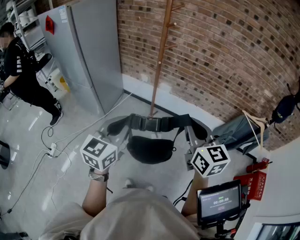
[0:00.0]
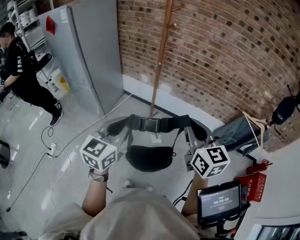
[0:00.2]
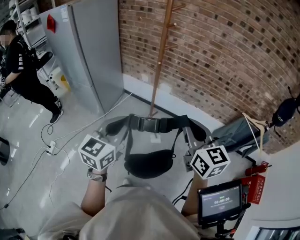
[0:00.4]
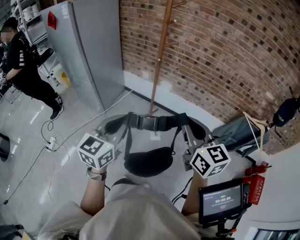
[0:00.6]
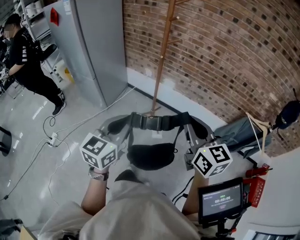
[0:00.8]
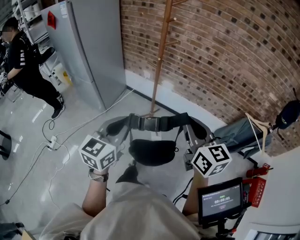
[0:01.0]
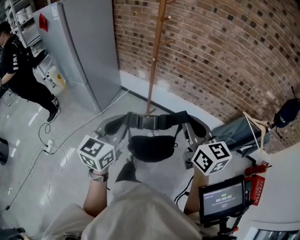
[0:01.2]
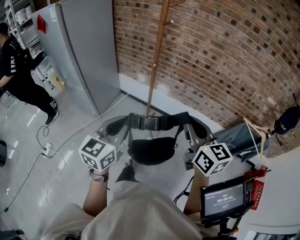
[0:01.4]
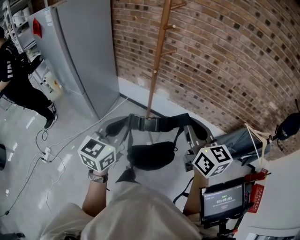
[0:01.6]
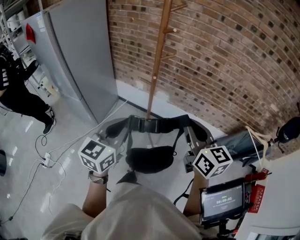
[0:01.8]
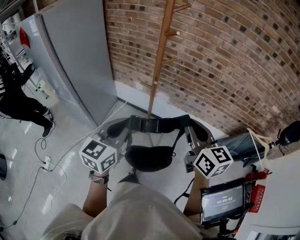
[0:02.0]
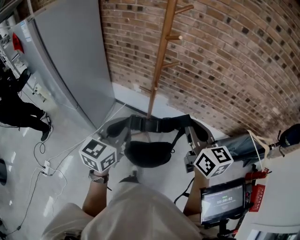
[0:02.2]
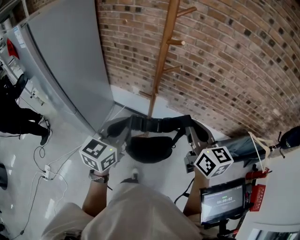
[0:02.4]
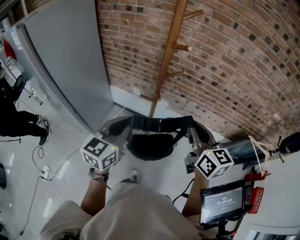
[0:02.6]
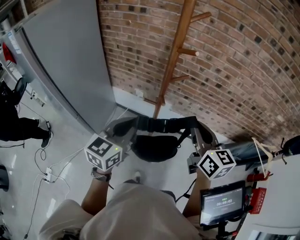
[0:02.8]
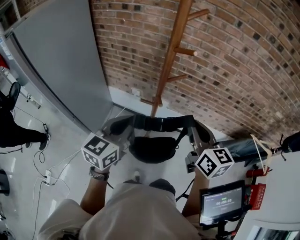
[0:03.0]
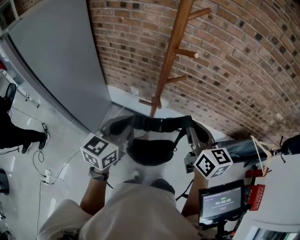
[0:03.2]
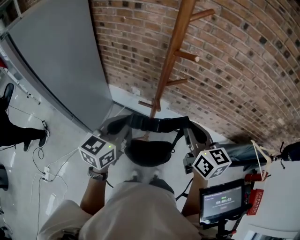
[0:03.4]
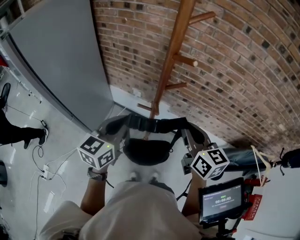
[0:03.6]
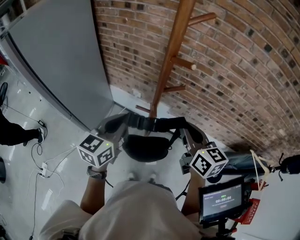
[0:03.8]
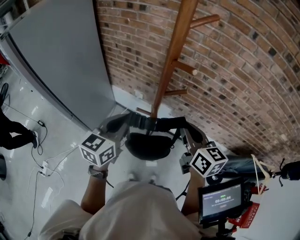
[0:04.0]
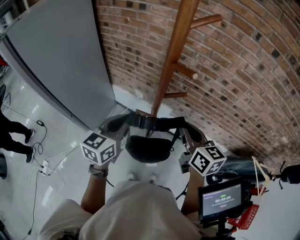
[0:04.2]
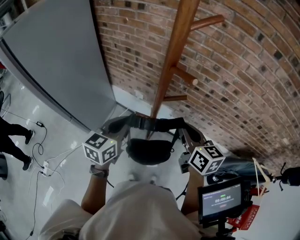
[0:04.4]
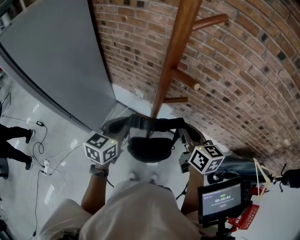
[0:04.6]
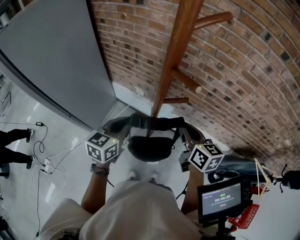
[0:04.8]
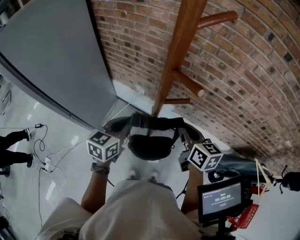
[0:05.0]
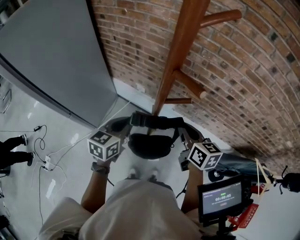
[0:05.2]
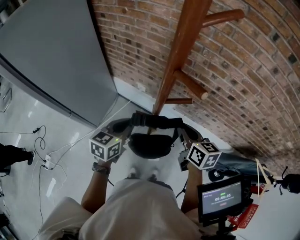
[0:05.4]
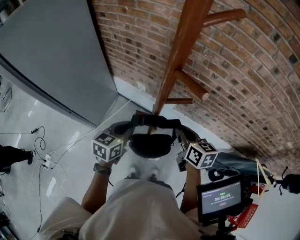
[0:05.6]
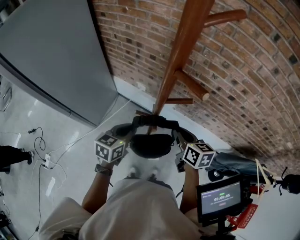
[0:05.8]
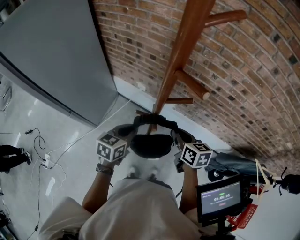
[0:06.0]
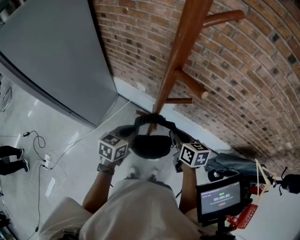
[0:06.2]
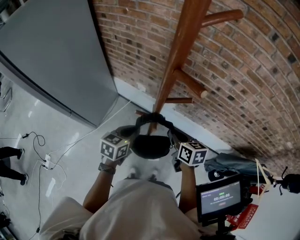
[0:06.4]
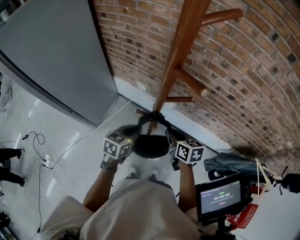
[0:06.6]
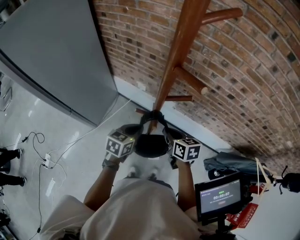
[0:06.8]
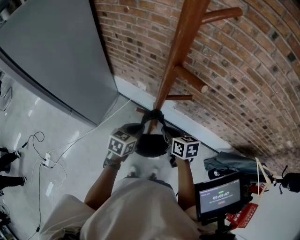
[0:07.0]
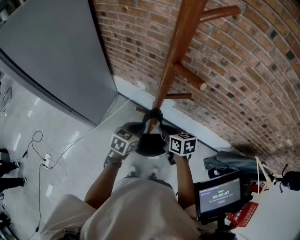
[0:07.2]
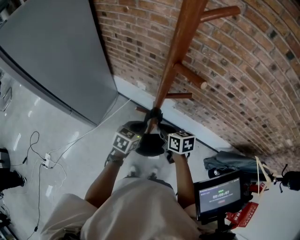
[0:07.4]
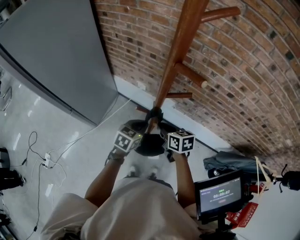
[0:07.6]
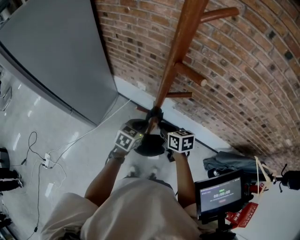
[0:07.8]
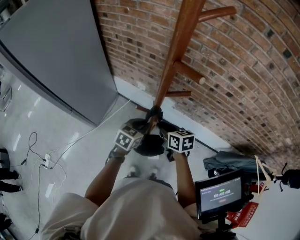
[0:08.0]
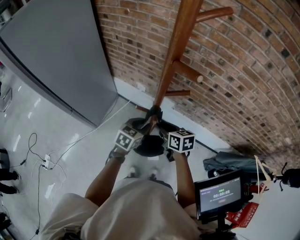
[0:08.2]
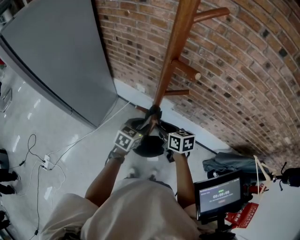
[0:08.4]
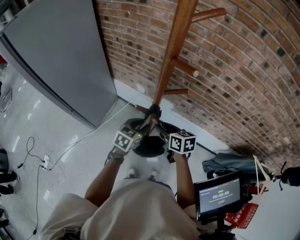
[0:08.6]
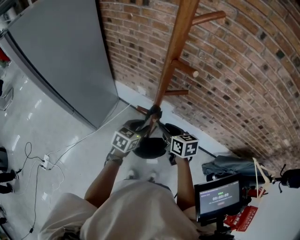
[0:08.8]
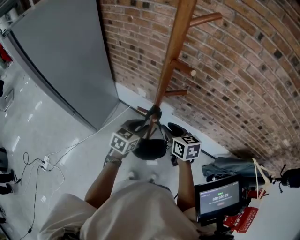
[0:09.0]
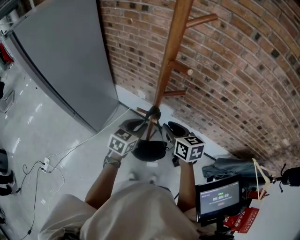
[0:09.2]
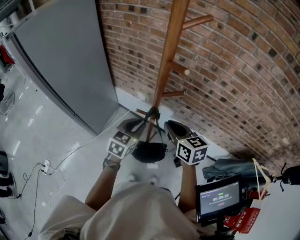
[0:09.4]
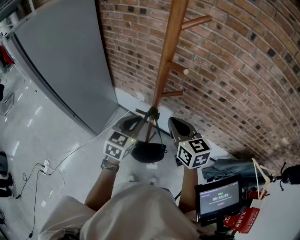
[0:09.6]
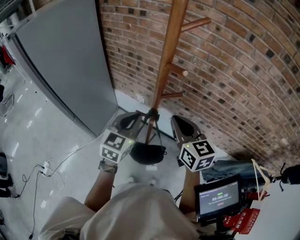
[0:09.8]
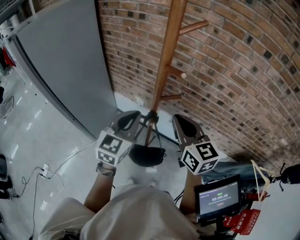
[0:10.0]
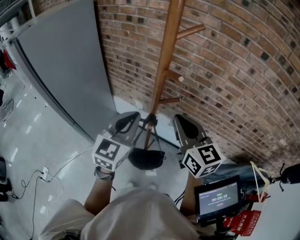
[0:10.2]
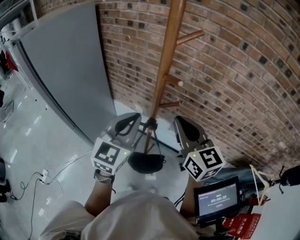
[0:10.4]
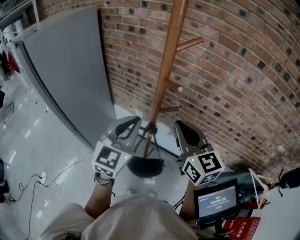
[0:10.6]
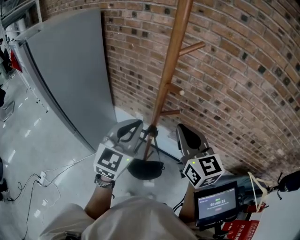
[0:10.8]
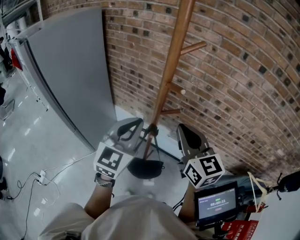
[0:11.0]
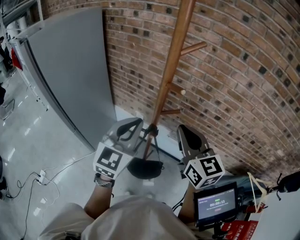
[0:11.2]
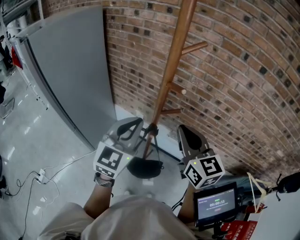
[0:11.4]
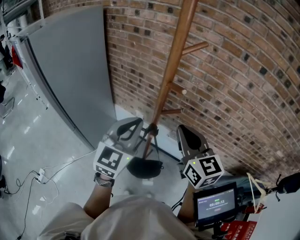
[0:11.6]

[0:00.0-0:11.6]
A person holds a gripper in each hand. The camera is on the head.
0:00.0 to 0:01.4: Both grippers travel together forward, some 5 cm.
0:01.4 to 0:02.8: Both grippers move forward, roughly 25 cm.
0:02.8 to 0:04.4: The two grippers go about 15 cm forward and downward.
0:04.4 to 0:05.8: Both grippers move downward, some 10 cm.
0:05.8 to 0:07.2: The right gripper travels downward and to the left by some 10 cm; the left gripper moves downward, about 5 cm.
0:07.2 to 0:08.8: The right gripper opens up. Meanwhile the left gripper opens.
0:08.8 to 0:10.2: Both grippers travel together upward, approximately 25 cm. The left gripper rotates approximately 30 degrees, and closes its fingers. Meanwhile the right gripper turns by some 30 degrees, and closes its fingers.
0:10.2 to 0:11.6: The grippers move only a little.

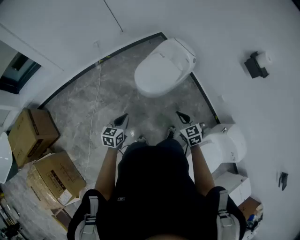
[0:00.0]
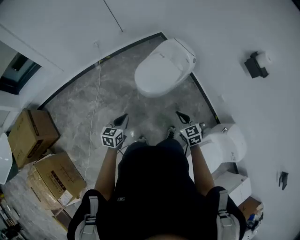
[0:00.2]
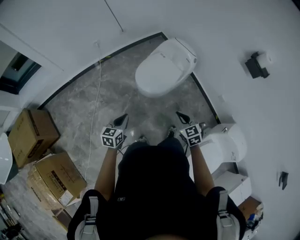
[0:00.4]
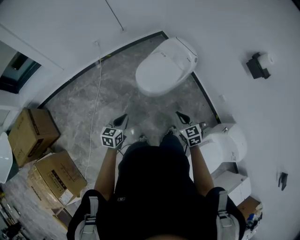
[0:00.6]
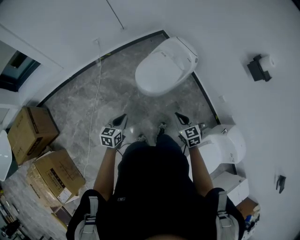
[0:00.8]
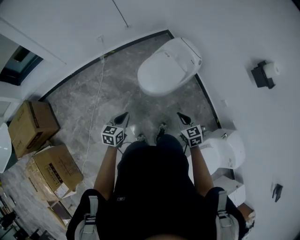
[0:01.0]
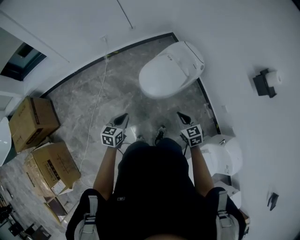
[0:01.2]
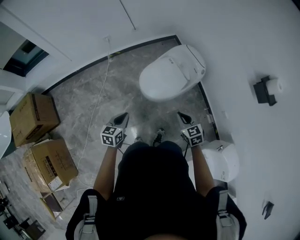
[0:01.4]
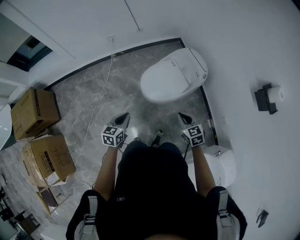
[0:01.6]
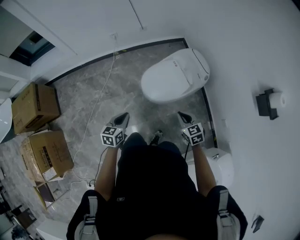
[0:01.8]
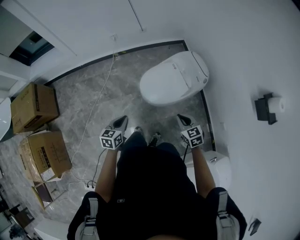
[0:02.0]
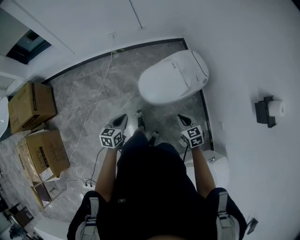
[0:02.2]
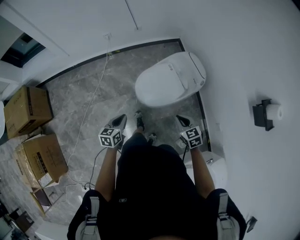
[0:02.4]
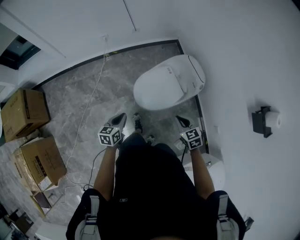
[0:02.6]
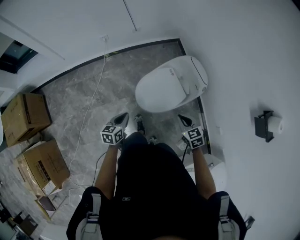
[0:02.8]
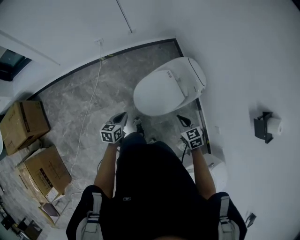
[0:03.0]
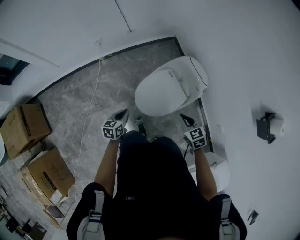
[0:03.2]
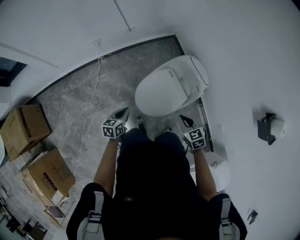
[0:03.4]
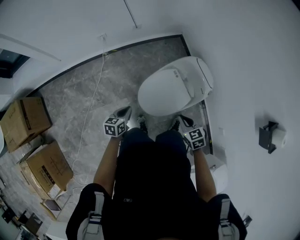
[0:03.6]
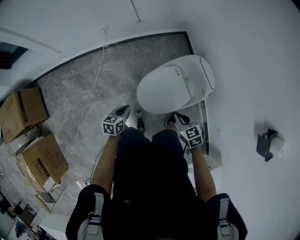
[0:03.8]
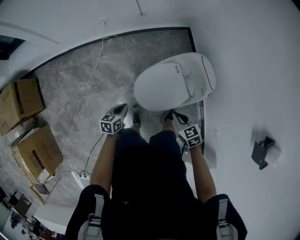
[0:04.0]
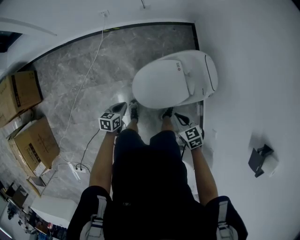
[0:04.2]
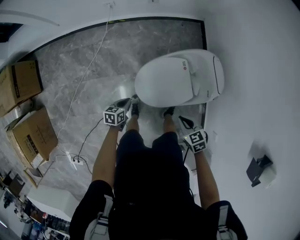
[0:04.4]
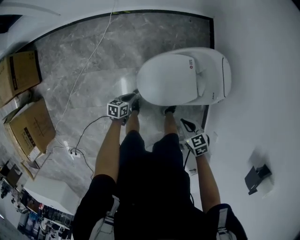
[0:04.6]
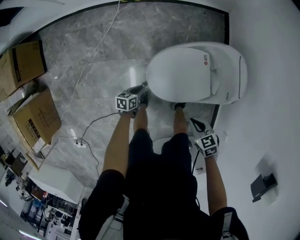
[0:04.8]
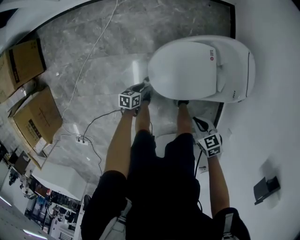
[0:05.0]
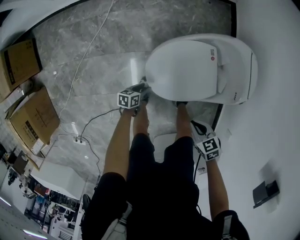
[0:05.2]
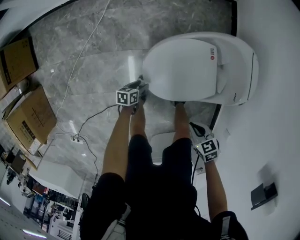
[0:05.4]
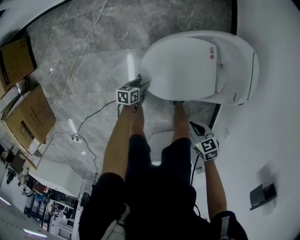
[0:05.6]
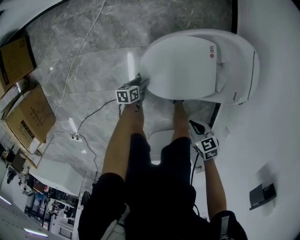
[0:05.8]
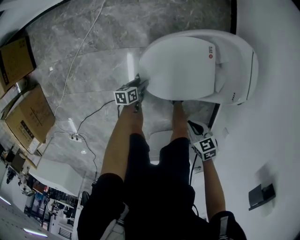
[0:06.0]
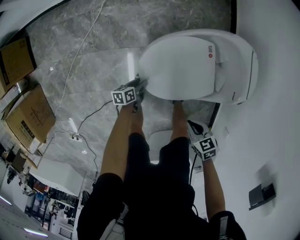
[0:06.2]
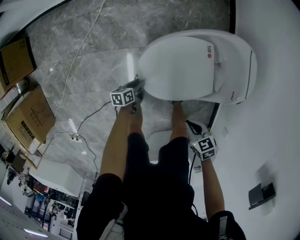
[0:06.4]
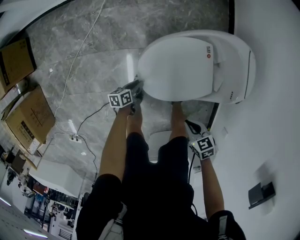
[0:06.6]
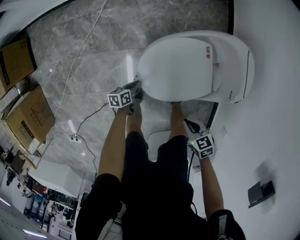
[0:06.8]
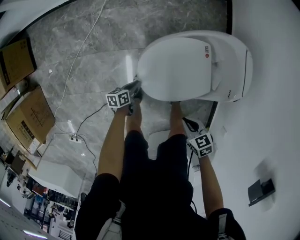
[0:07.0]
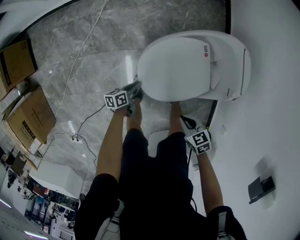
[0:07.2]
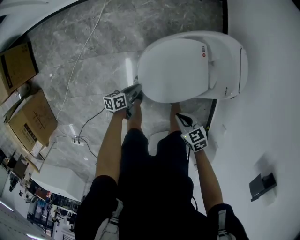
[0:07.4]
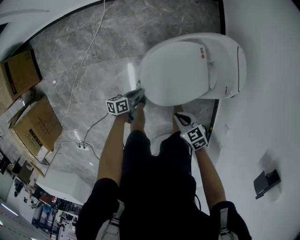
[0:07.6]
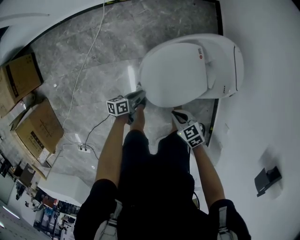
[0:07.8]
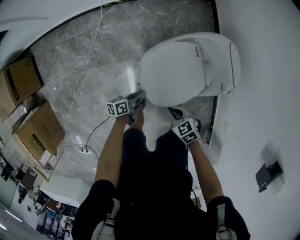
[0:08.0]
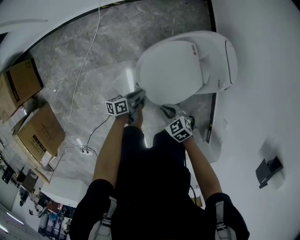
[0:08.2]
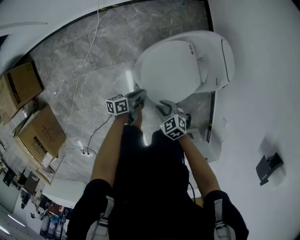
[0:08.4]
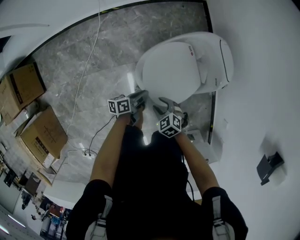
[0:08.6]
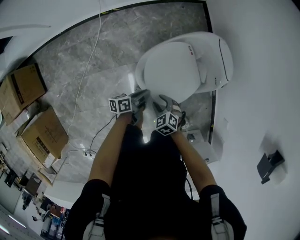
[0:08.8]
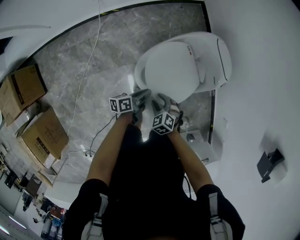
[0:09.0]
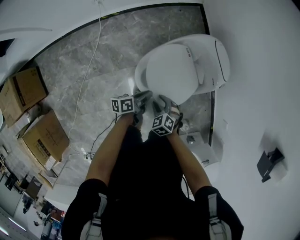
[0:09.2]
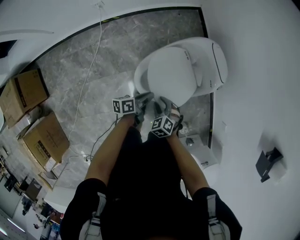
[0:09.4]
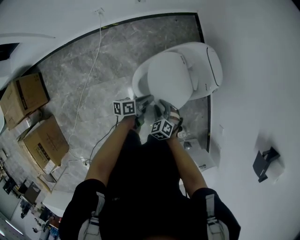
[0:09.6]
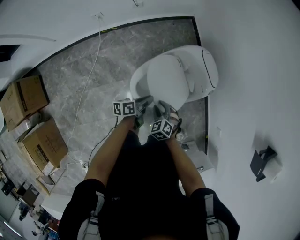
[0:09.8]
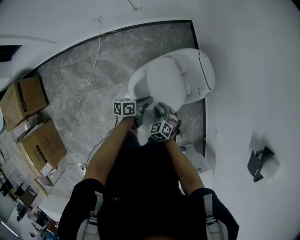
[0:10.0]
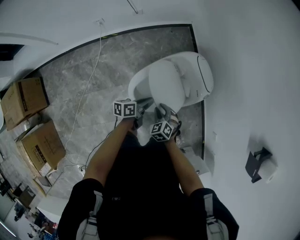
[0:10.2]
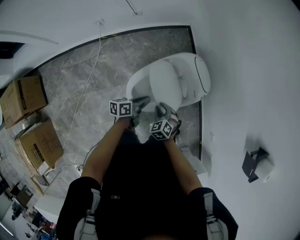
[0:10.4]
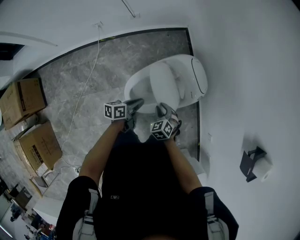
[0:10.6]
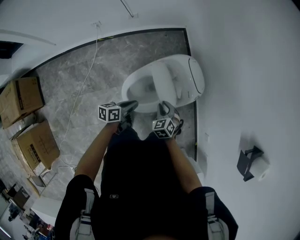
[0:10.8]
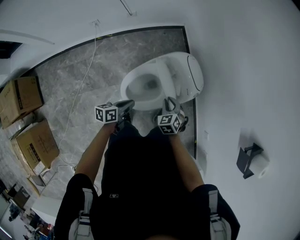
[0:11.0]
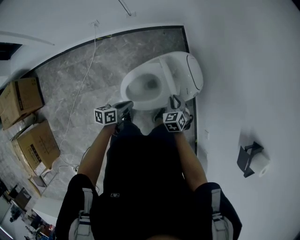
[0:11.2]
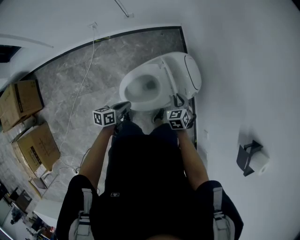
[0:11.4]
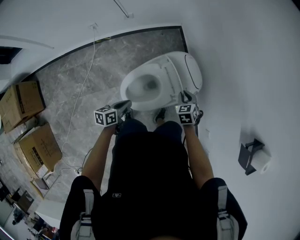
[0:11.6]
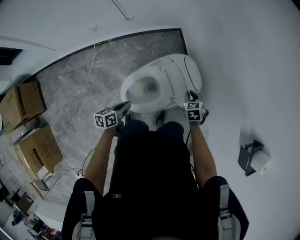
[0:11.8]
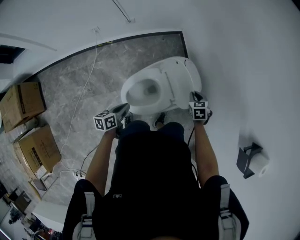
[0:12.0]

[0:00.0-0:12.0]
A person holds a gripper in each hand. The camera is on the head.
0:00.0 to 0:01.6: The left gripper moves forward and to the right, roughly 10 cm. Meanwhile the right gripper shifts approximately 10 cm forward and to the right.
0:01.6 to 0:03.0: The right gripper moves forward, roughly 20 cm, while the left gripper goes roughly 20 cm forward and downward.
0:03.0 to 0:04.4: The left gripper is displaced downward by roughly 20 cm; the right gripper is displaced downward and forward by approximately 15 cm, and rotates some 20 degrees.
0:04.4 to 0:06.0: Both grippers travel together downward, about 20 cm. The left gripper turns by some 20 degrees, and opens.
0:06.0 to 0:07.6: The right gripper ends up roughly 10 cm from where it was, while the left gripper travels upward by approximately 10 cm, and closes its fingers.
0:07.6 to 0:09.0: The left gripper shifts about 15 cm upward. The right gripper changes place by some 10 cm, swivels about 30 degrees, and opens its fingers.
0:09.0 to 0:10.4: The grippers both shift upward, to the right and forward by roughly 15 cm.
0:10.4 to 0:12.0: The right gripper shifts about 25 cm to the right and forward, and turns by roughly 20 degrees. Meanwhile the left gripper is displaced backward by some 5 cm.
